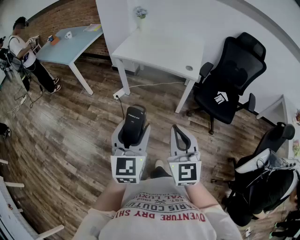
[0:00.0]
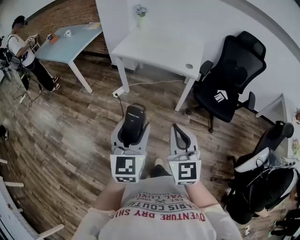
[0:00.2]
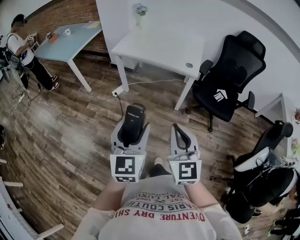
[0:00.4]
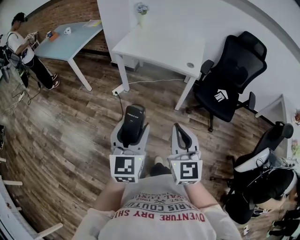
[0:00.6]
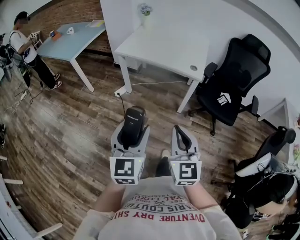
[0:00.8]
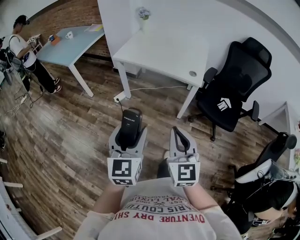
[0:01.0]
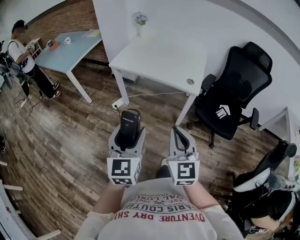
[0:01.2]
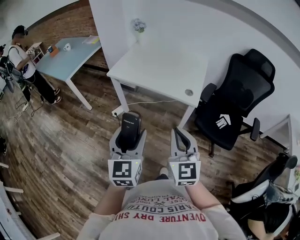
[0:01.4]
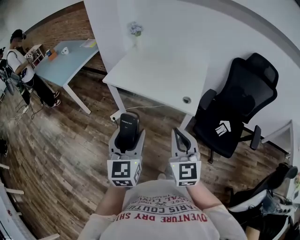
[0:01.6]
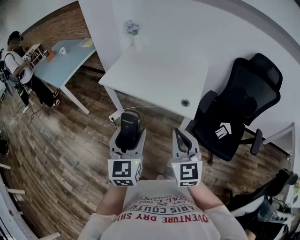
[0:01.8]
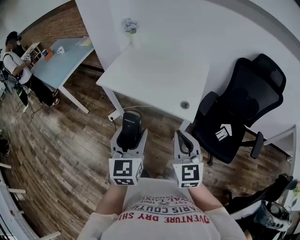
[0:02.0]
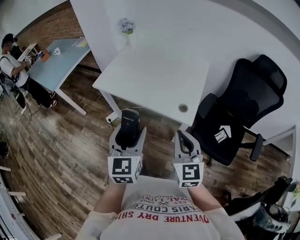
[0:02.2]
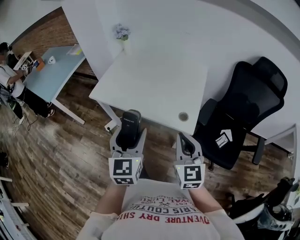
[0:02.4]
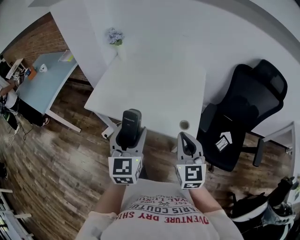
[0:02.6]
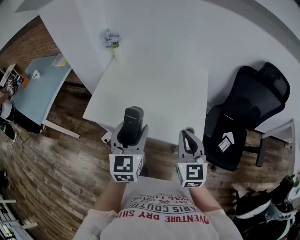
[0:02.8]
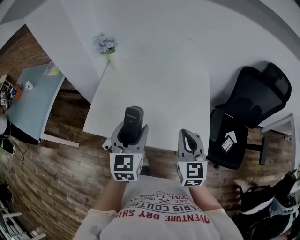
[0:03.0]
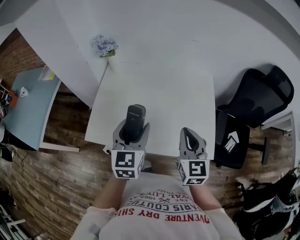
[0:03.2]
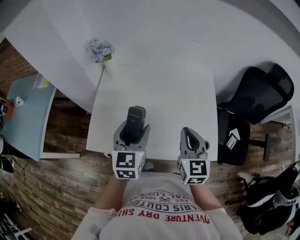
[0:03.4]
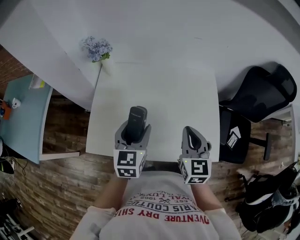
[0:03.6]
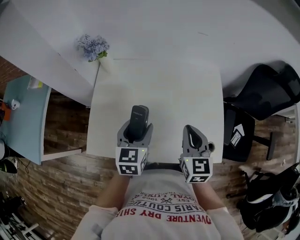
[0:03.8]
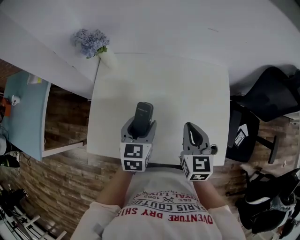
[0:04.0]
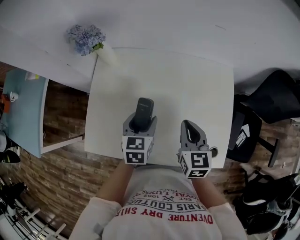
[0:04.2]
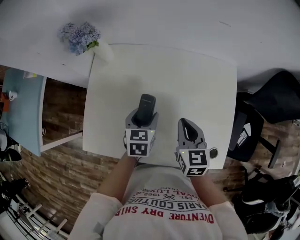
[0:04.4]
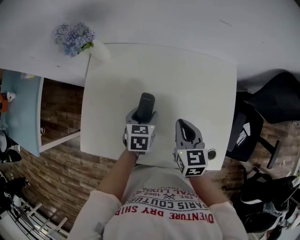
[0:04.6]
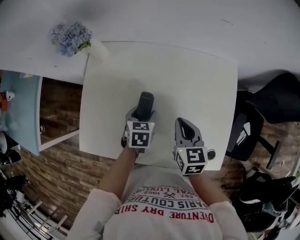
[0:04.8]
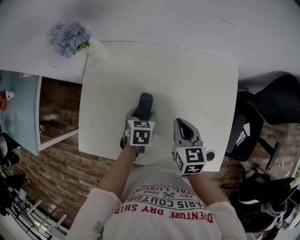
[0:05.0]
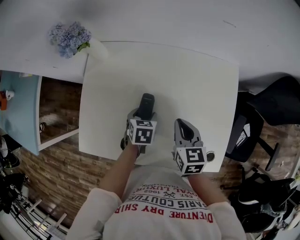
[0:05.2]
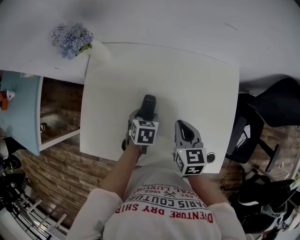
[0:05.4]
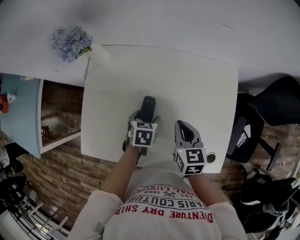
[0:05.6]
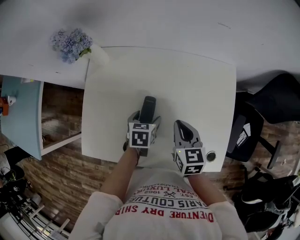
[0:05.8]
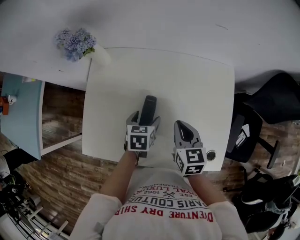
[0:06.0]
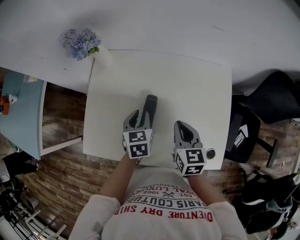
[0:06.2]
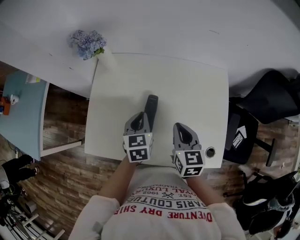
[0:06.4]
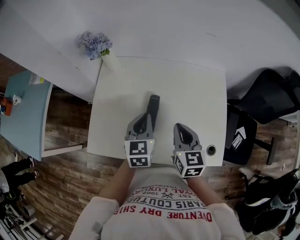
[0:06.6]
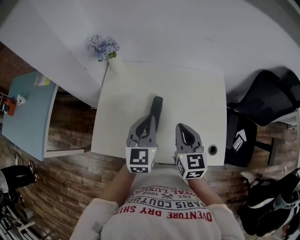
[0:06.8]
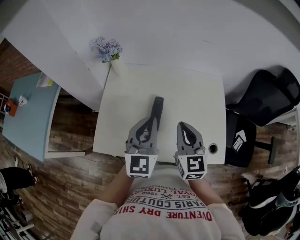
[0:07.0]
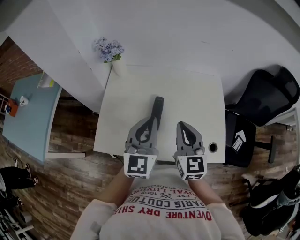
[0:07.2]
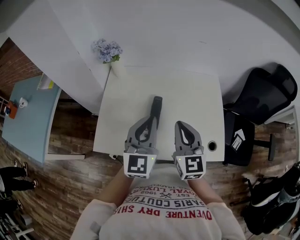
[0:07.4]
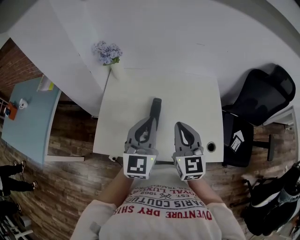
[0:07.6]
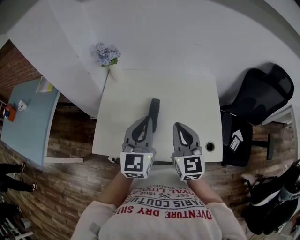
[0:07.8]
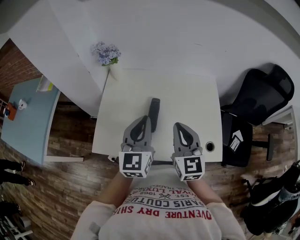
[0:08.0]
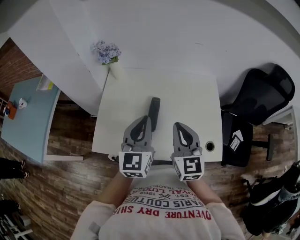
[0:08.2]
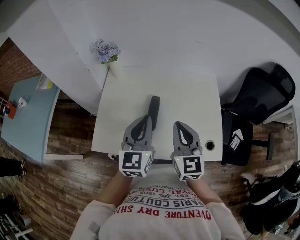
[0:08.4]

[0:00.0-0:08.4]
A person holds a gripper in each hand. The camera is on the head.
0:00.0 to 0:01.4: The two grippers go some 20 cm forward.
0:01.4 to 0:02.8: The grippers both shift forward by approximately 40 cm.
0:02.8 to 0:04.2: The left gripper goes about 35 cm forward and downward, and rotates about 30 degrees; the right gripper moves forward, downward and to the left, about 30 cm, and turns by approximately 20 degrees.
0:04.2 to 0:05.6: The left gripper is displaced downward by about 10 cm, and rotates about 20 degrees. The right gripper moves downward, about 5 cm.
0:05.6 to 0:07.0: The left gripper heads upward, covering some 30 cm, tips its fingers upward by some 60 degrees, and closes up; the right gripper heads upward and backward, covering approximately 20 cm, and rotates some 30 degrees.
0:07.0 to 0:08.4: The grippers stay close to where they were, moving slightly.

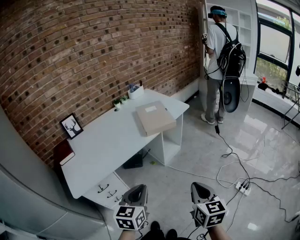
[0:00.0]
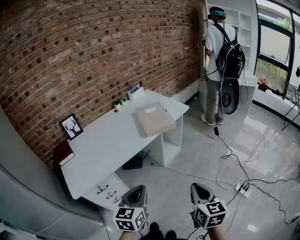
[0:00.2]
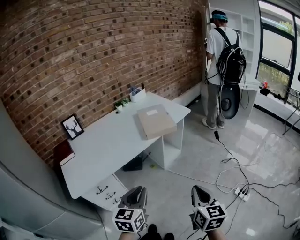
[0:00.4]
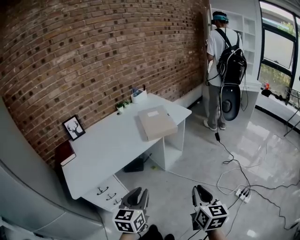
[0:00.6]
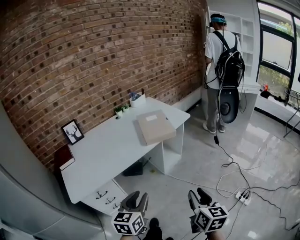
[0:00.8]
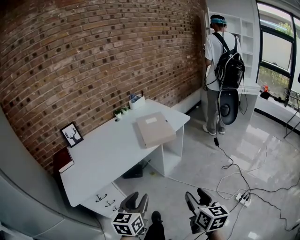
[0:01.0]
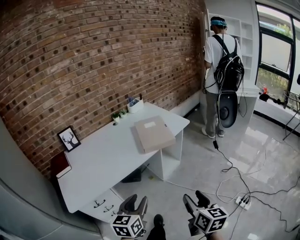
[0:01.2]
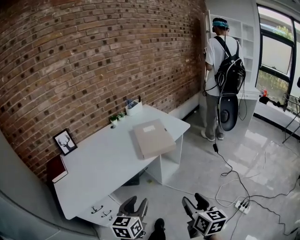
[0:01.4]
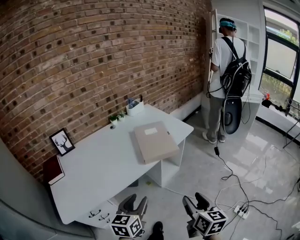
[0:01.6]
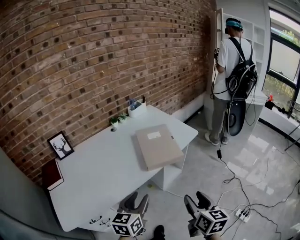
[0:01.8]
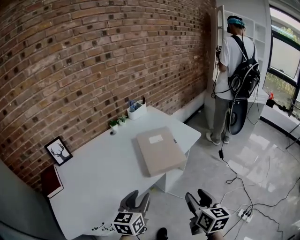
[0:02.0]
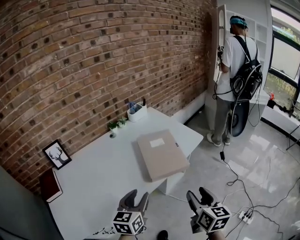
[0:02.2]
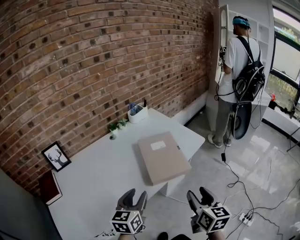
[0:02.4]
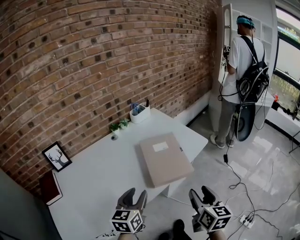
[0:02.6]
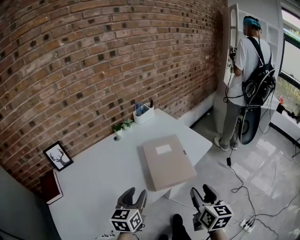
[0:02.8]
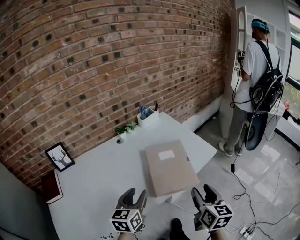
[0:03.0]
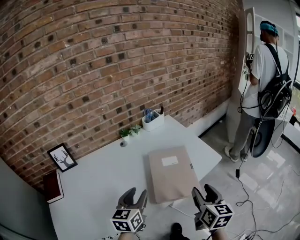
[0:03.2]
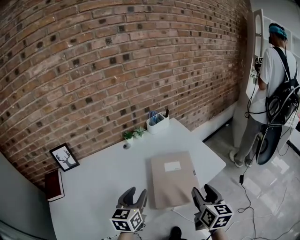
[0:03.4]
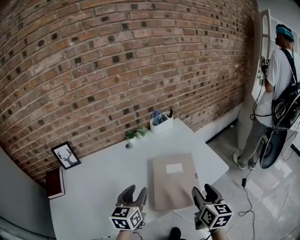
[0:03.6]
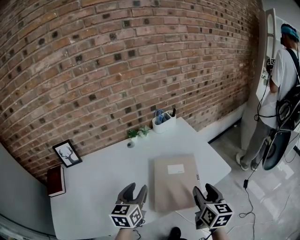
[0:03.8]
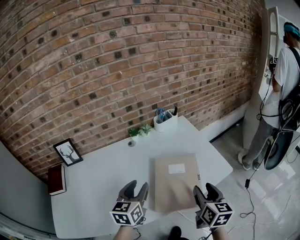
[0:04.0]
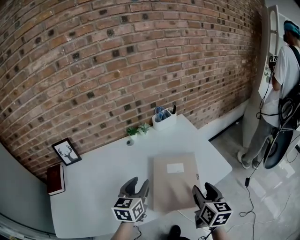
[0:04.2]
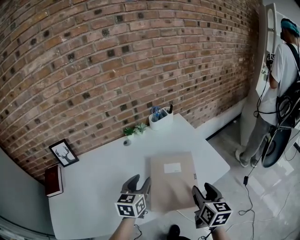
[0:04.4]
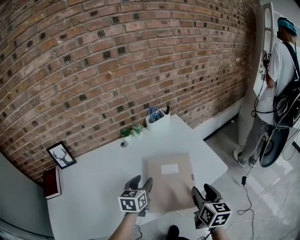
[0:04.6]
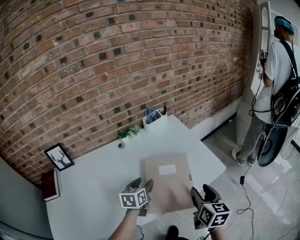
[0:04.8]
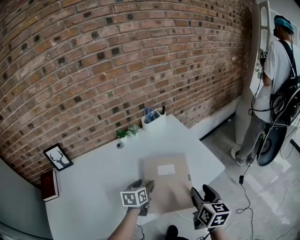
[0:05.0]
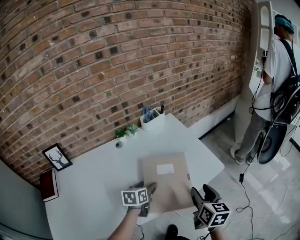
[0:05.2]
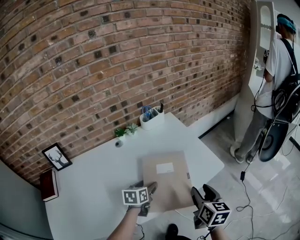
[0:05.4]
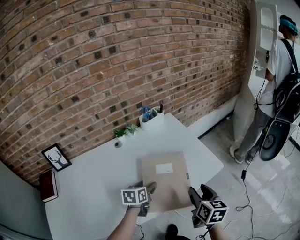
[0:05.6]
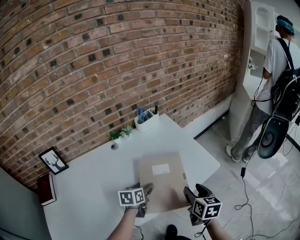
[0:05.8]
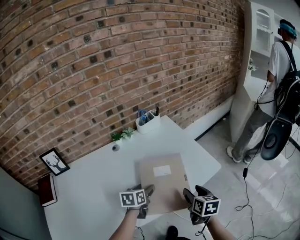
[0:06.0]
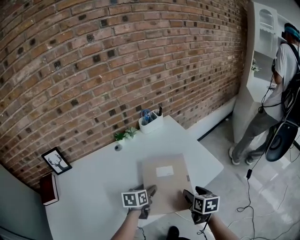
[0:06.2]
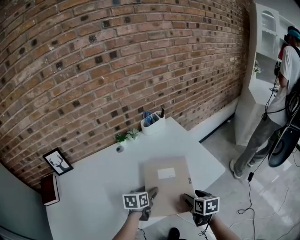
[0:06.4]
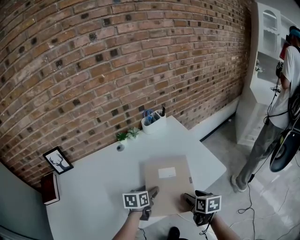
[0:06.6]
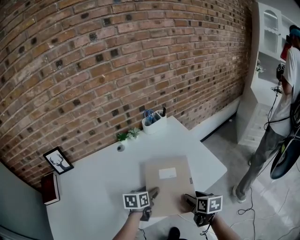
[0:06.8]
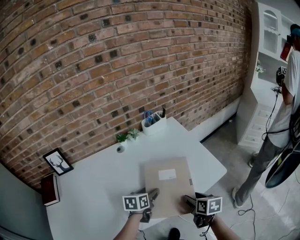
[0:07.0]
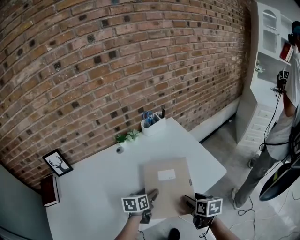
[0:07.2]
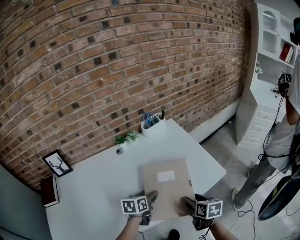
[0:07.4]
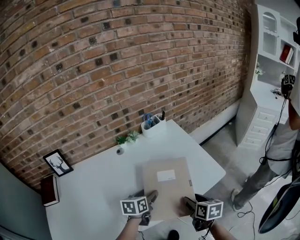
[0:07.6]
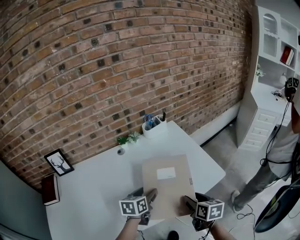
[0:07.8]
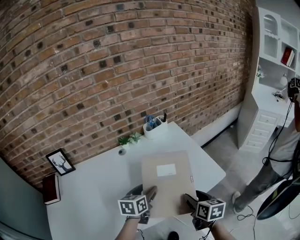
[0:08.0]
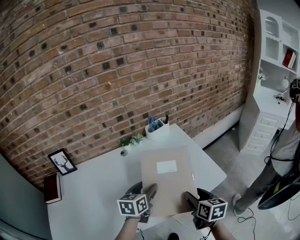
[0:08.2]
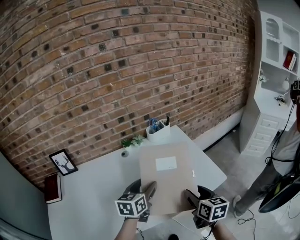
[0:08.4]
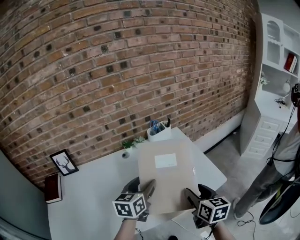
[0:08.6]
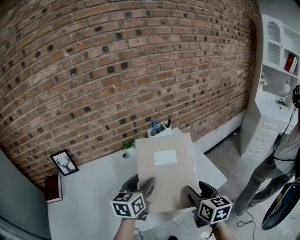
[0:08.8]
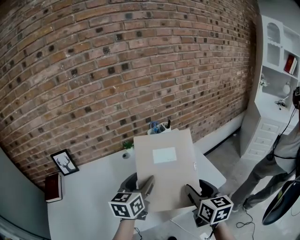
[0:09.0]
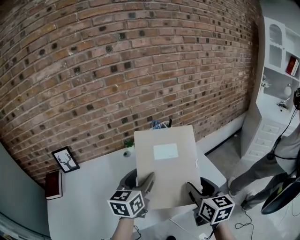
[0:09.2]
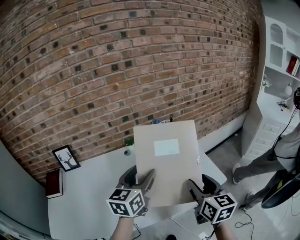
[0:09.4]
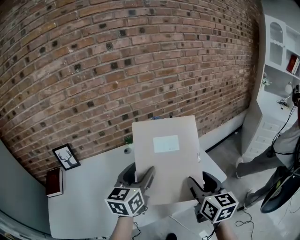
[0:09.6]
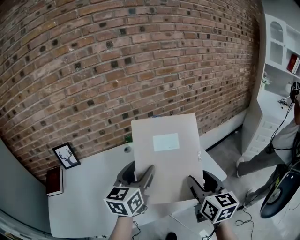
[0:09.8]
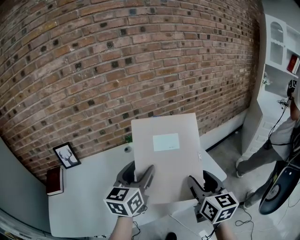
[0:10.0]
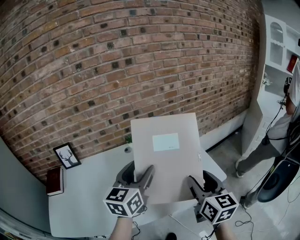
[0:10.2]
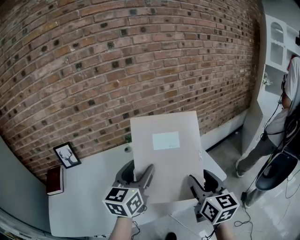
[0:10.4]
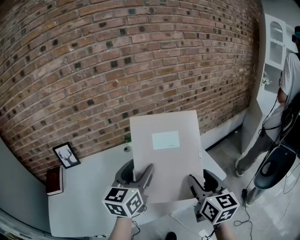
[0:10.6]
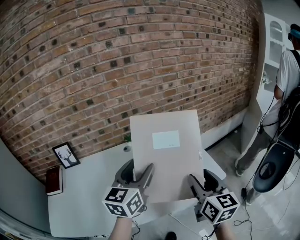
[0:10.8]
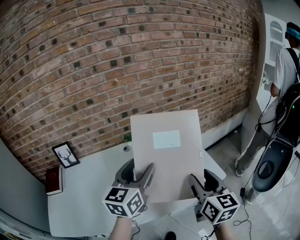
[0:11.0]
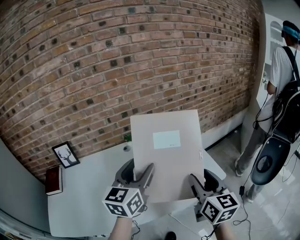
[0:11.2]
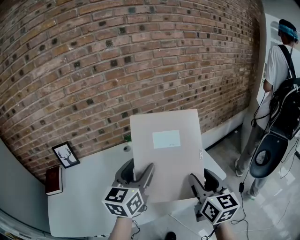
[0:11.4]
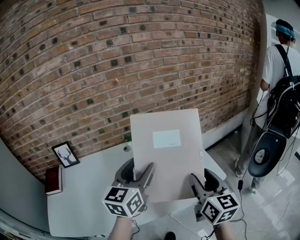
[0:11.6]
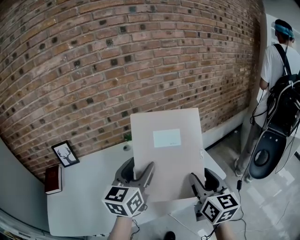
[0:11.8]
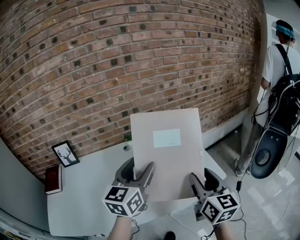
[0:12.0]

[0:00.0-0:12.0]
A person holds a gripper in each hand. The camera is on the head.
0:00.0 to 0:01.6: The grippers both shift forward by approximately 15 cm. The left gripper opens; the right gripper opens.
0:01.6 to 0:03.0: The two grippers go some 30 cm forward.
0:03.0 to 0:04.4: The grippers both shift forward by approximately 15 cm.
0:04.4 to 0:06.0: The grippers both shift downward by approximately 10 cm. The left gripper turns by some 30 degrees, and opens.
0:06.0 to 0:07.6: The grippers move only a little.
0:07.6 to 0:09.0: Both grippers move upward, some 15 cm. The left gripper turns by some 30 degrees. The right gripper rotates about 30 degrees.
0:09.0 to 0:10.4: Both grippers travel together upward, about 5 cm.
0:10.4 to 0:12.0: Both grippers stay put.

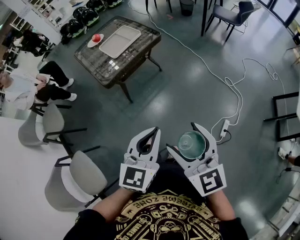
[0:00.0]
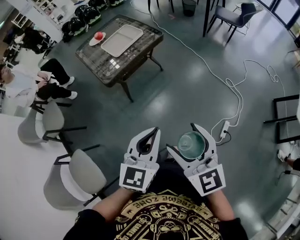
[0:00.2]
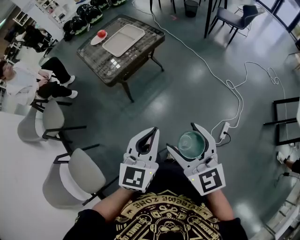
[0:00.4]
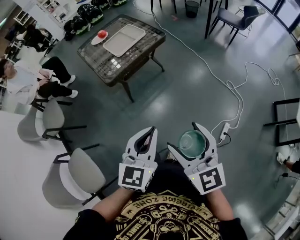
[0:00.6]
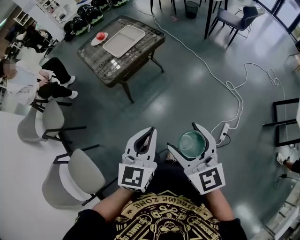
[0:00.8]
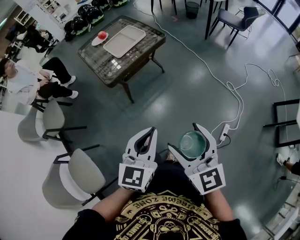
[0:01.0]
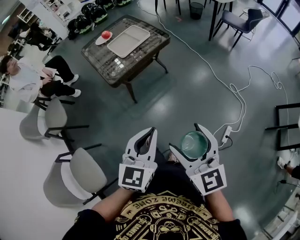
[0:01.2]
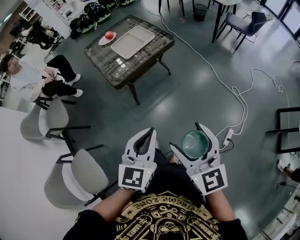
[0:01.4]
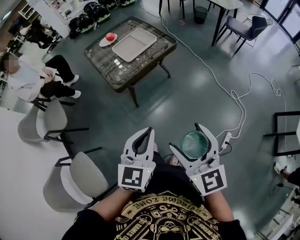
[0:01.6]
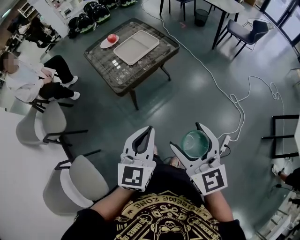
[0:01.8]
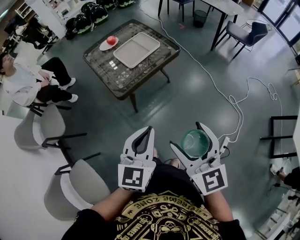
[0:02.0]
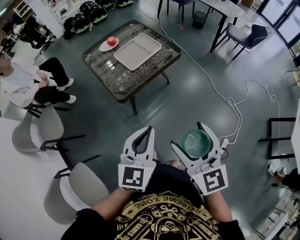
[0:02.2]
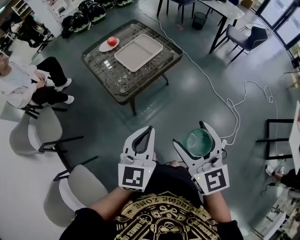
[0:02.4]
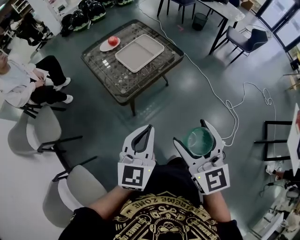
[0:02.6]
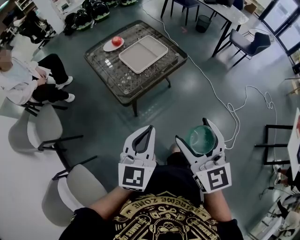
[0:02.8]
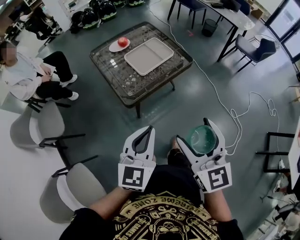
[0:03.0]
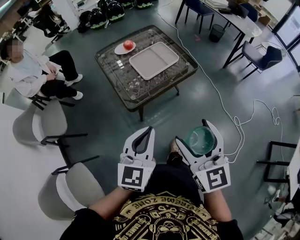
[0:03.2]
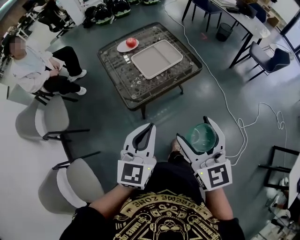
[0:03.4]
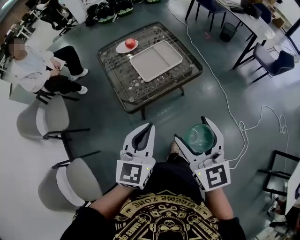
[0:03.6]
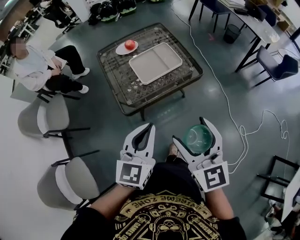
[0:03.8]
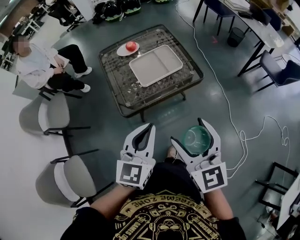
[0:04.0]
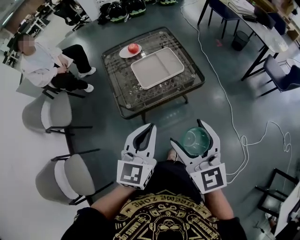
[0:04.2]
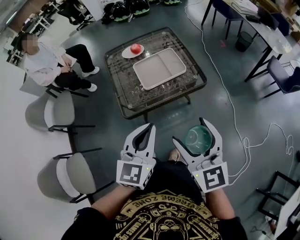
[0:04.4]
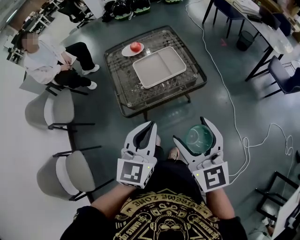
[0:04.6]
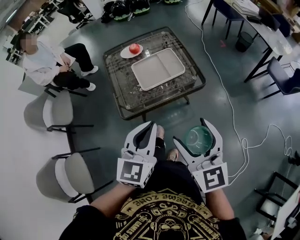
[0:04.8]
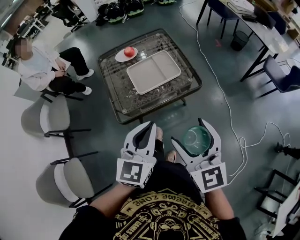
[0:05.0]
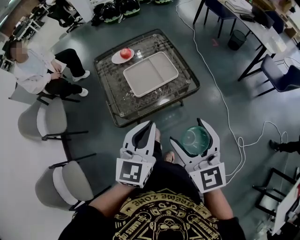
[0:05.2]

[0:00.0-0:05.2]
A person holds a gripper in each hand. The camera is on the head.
0:00.0 to 0:01.8: The left gripper goes approximately 15 cm to the left and forward. The right gripper is displaced forward and to the left by roughly 10 cm.
0:01.8 to 0:03.4: The right gripper shifts some 20 cm forward, while the left gripper travels forward and to the left by approximately 15 cm.
0:03.4 to 0:05.2: The two grippers go roughly 20 cm forward and to the right.
